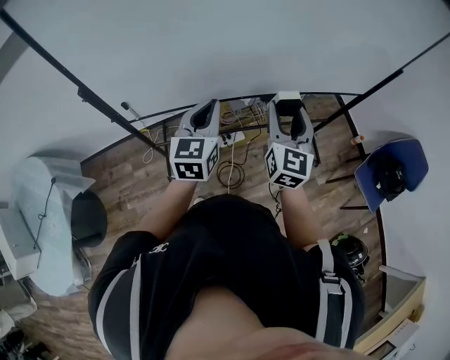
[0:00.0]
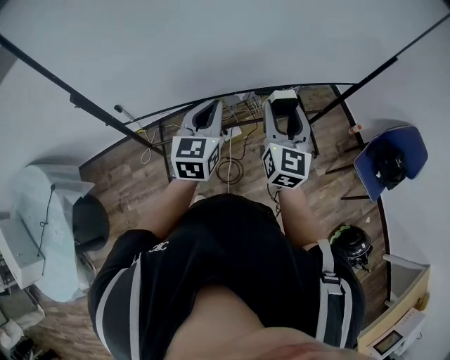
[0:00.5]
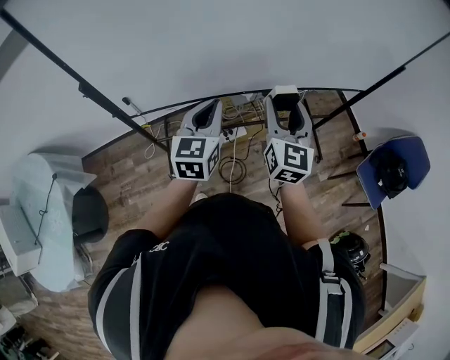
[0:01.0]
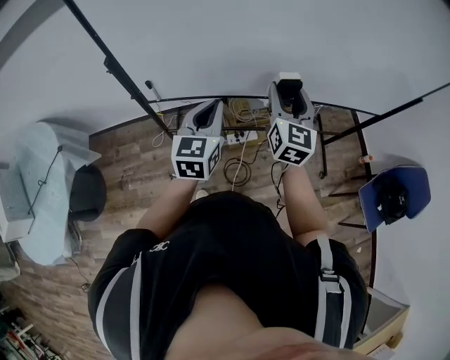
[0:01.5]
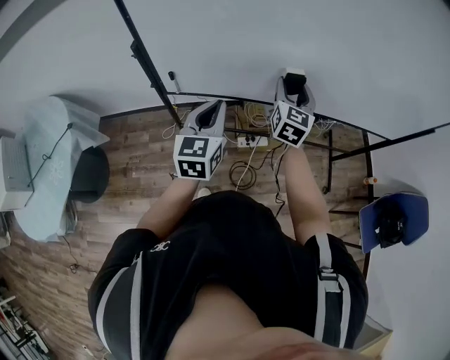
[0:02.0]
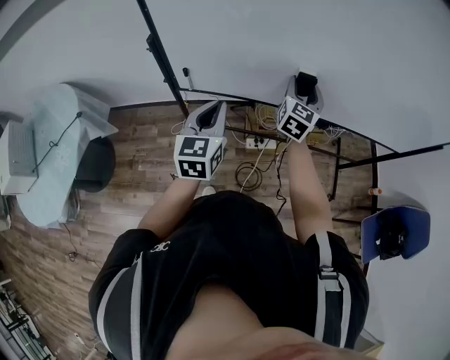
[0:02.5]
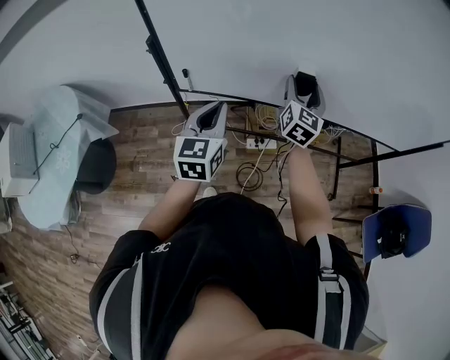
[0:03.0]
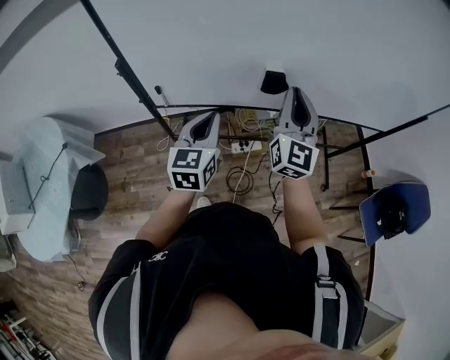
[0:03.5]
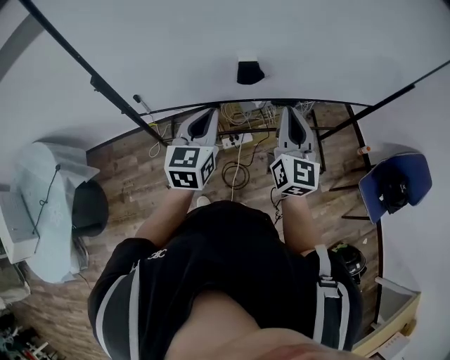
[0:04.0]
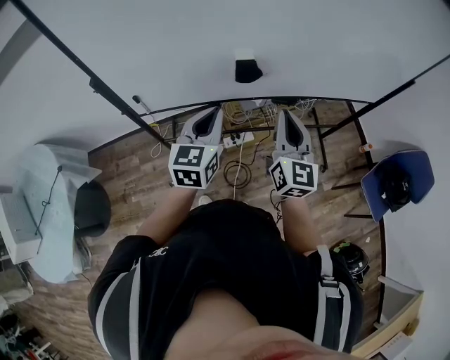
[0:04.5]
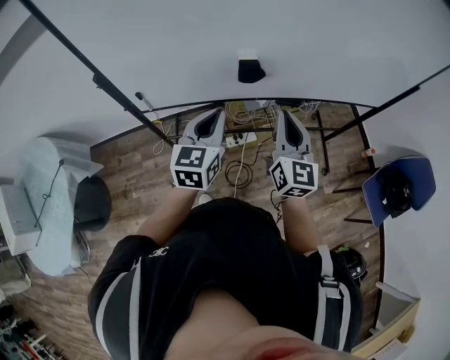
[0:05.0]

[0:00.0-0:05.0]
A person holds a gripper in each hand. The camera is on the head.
0:00.0 to 0:02.5: The left gripper goes some 15 cm to the left. Meanwhile the right gripper shifts roughly 20 cm forward and to the left.
0:02.5 to 0:05.0: The left gripper is displaced to the right by approximately 15 cm; the right gripper travels backward and to the right by about 20 cm, and closes its fingers.

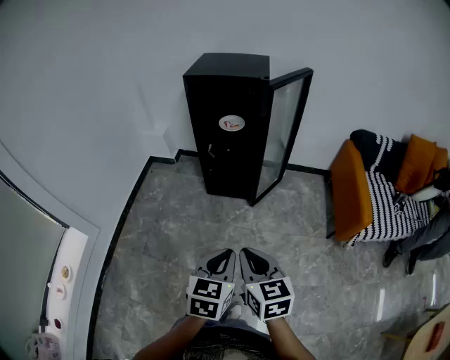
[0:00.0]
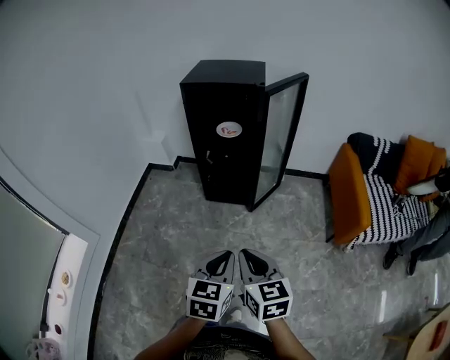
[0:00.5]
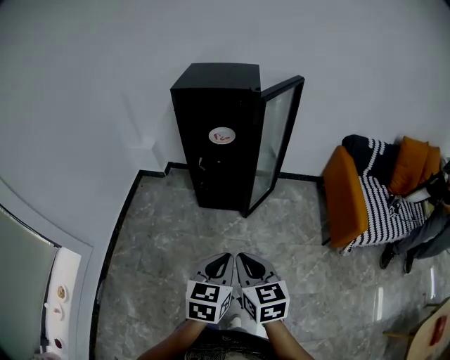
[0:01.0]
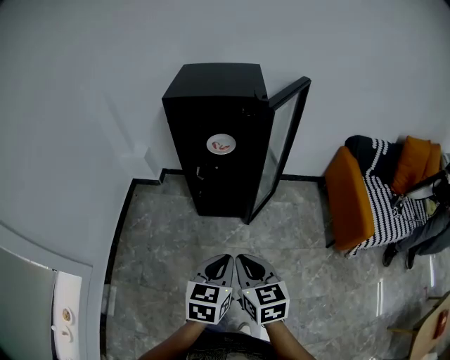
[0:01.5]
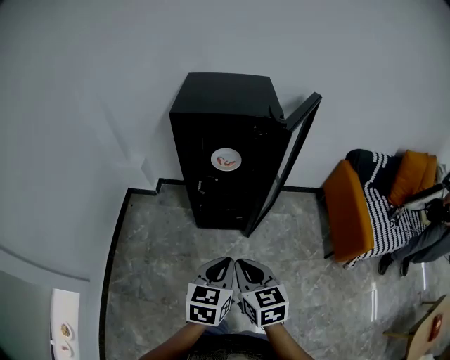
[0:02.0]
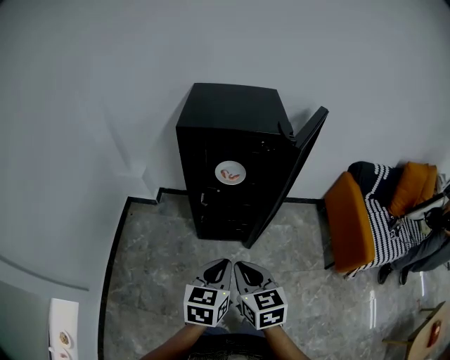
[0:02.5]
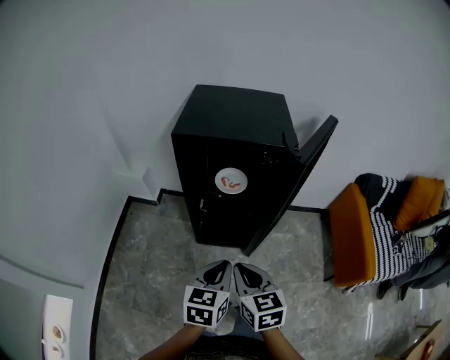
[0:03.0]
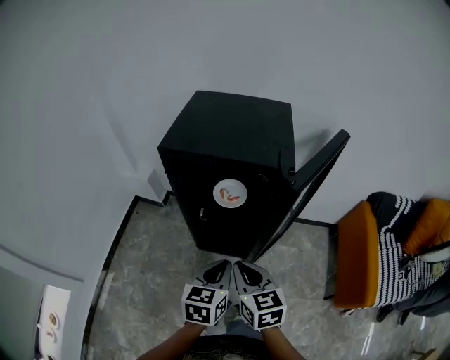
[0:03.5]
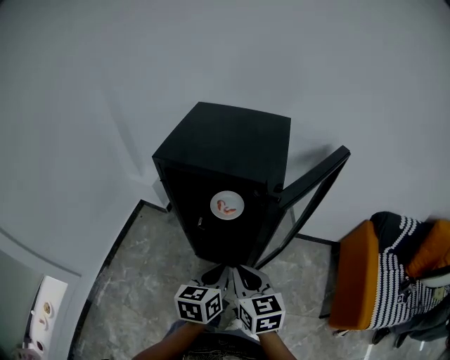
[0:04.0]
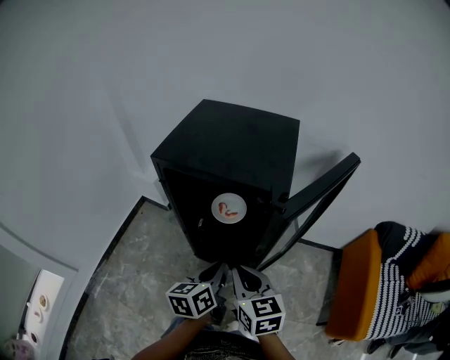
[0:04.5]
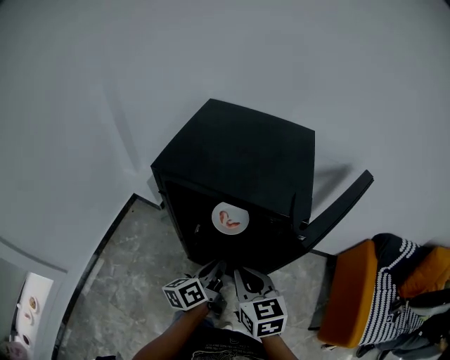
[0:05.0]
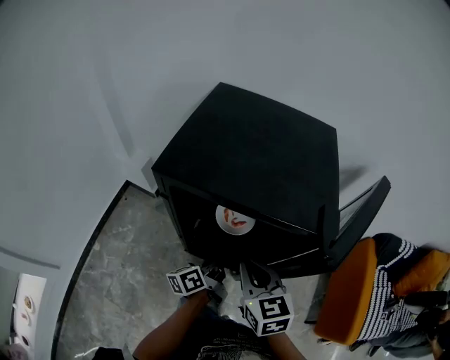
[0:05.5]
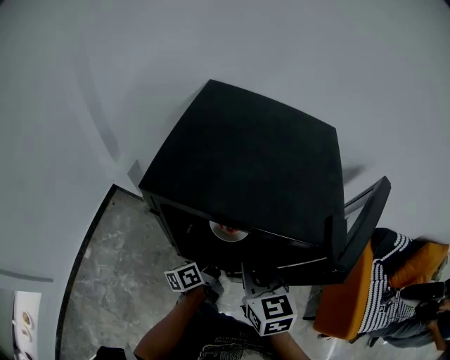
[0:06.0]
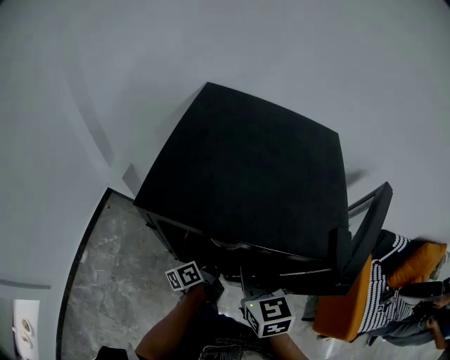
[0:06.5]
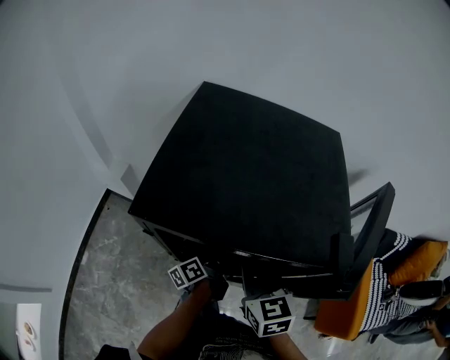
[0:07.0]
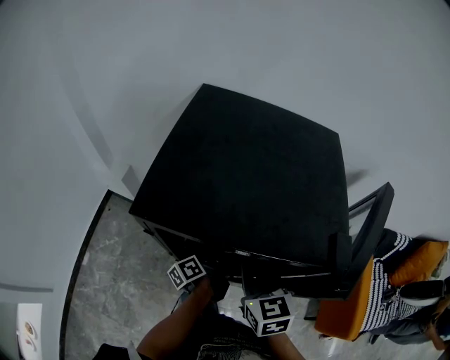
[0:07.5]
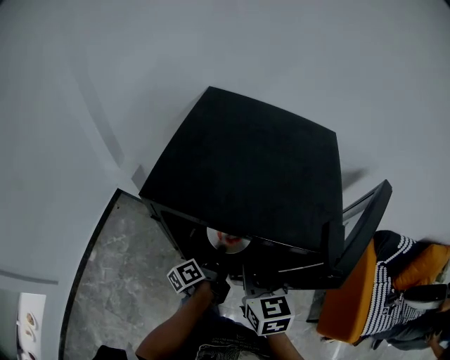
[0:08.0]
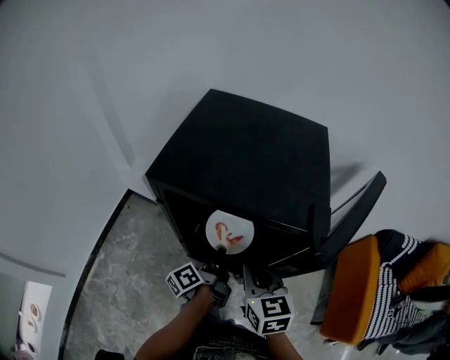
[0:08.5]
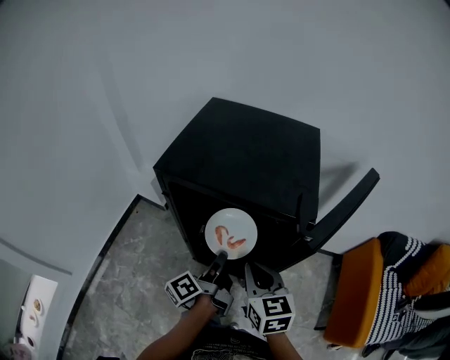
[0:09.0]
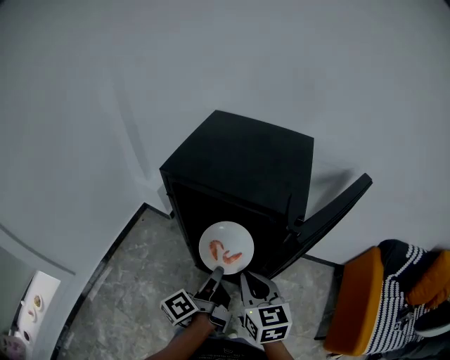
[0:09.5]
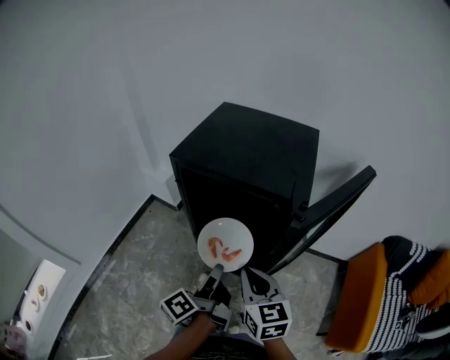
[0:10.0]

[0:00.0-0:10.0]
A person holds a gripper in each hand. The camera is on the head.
0:00.0 to 0:02.0: Both grippers move forward, about 25 cm.
0:02.0 to 0:04.0: Both grippers travel together forward and to the right, about 25 cm. The left gripper rotates roughly 20 degrees.
0:04.0 to 0:06.0: The right gripper moves forward, approximately 20 cm. The left gripper moves forward and downward, approximately 30 cm, and rotates around the line of its fingers by roughly 40 degrees, counterclockwise from behind.
0:06.0 to 0:08.0: The left gripper opens, then closes again.
0:08.0 to 0:10.0: The right gripper shifts some 15 cm backward; the left gripper shifts roughly 30 cm backward and upward, and rotates roughly 20 degrees.

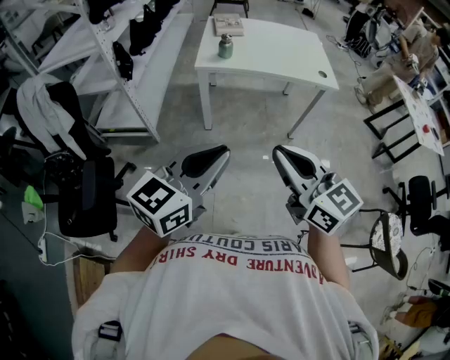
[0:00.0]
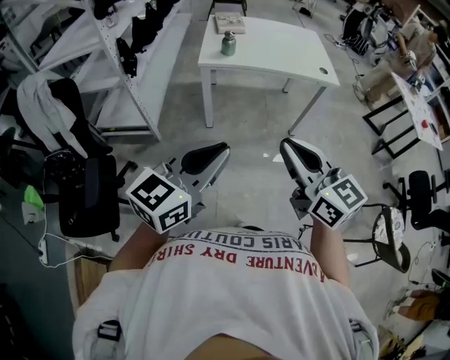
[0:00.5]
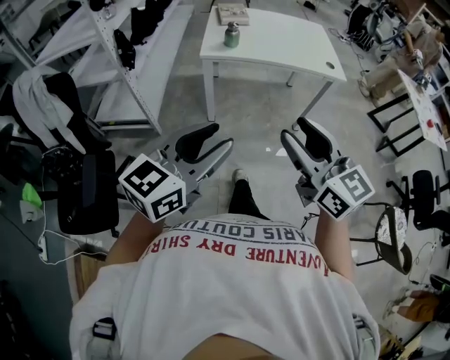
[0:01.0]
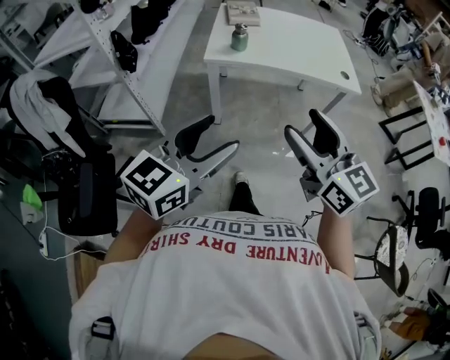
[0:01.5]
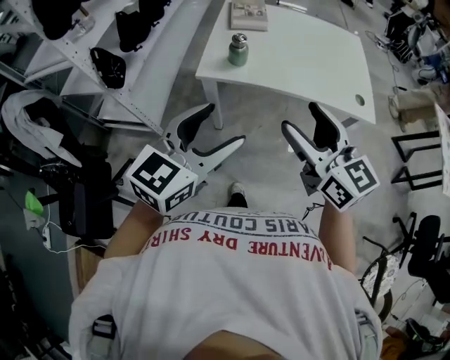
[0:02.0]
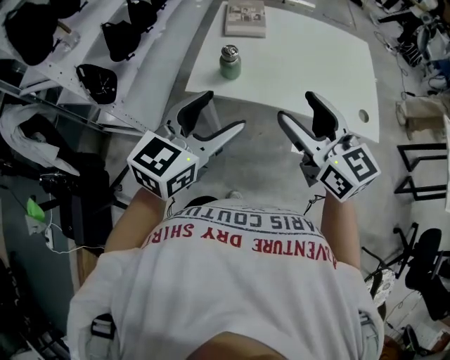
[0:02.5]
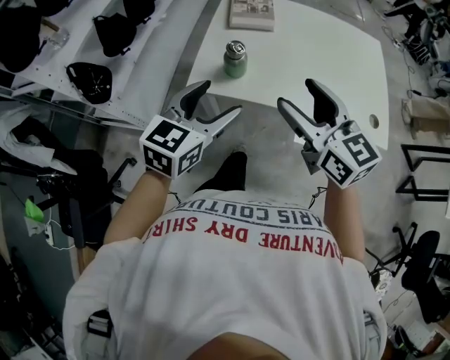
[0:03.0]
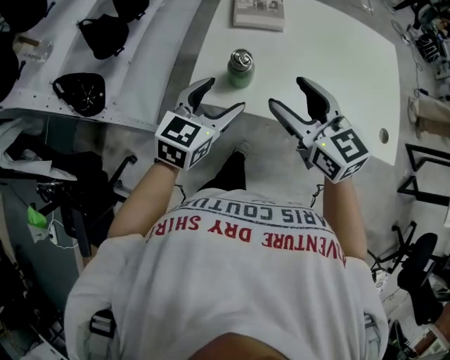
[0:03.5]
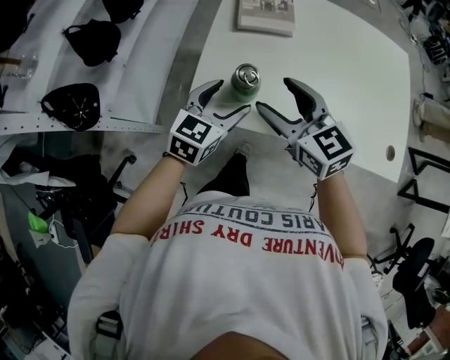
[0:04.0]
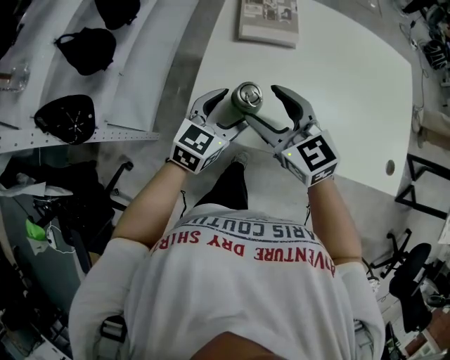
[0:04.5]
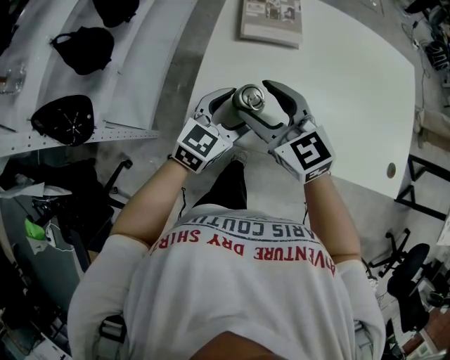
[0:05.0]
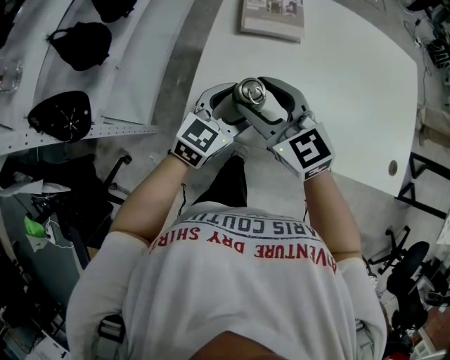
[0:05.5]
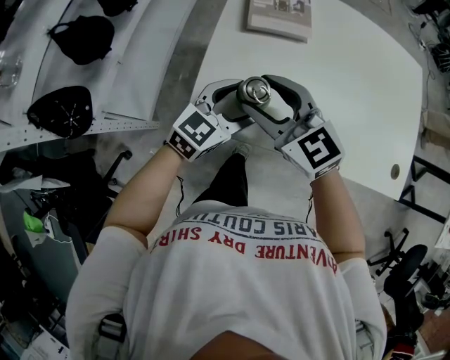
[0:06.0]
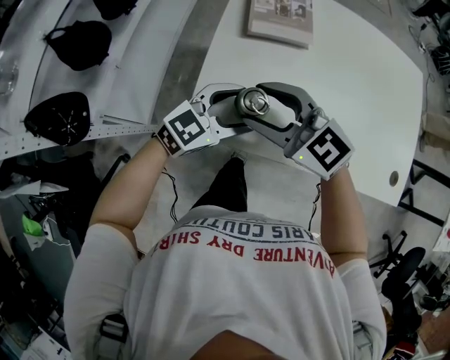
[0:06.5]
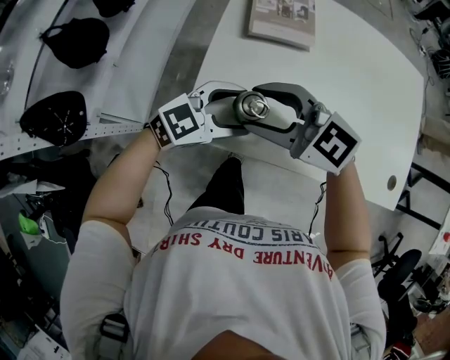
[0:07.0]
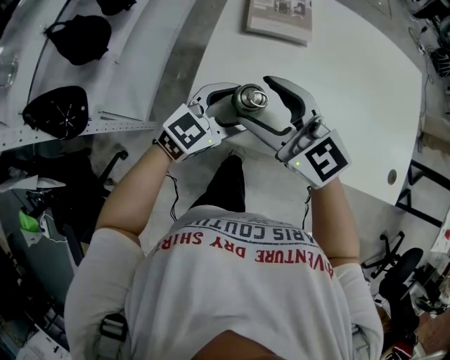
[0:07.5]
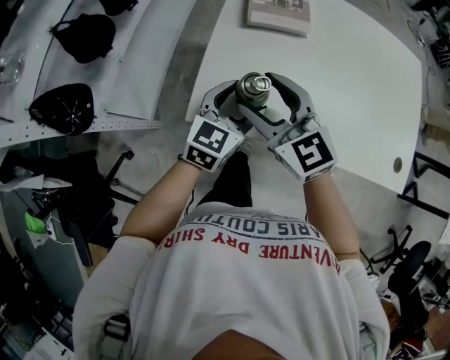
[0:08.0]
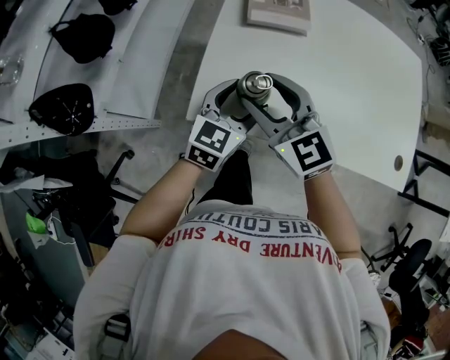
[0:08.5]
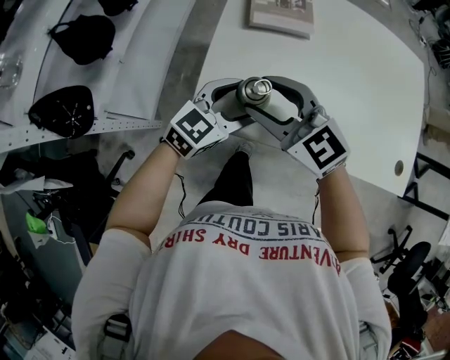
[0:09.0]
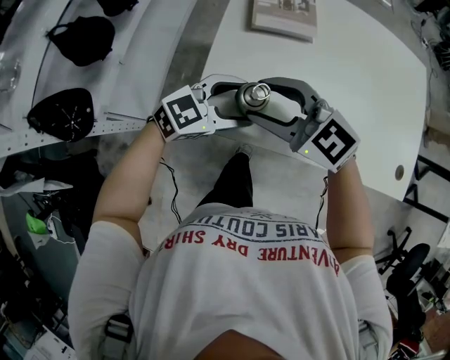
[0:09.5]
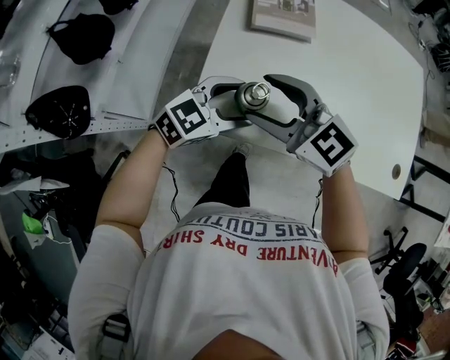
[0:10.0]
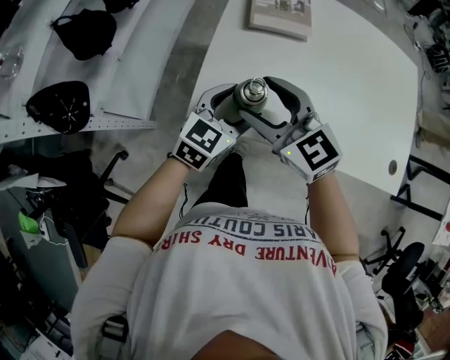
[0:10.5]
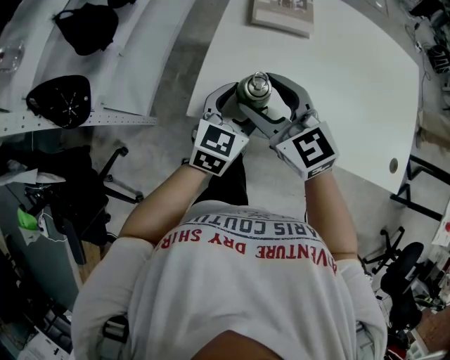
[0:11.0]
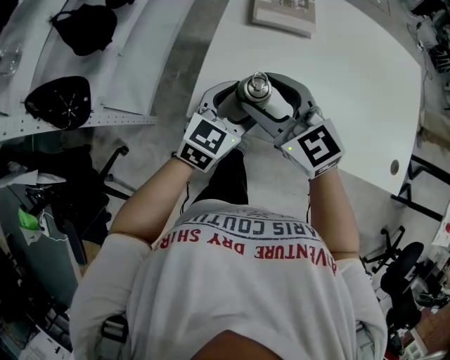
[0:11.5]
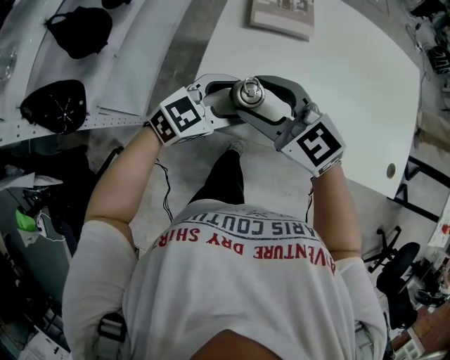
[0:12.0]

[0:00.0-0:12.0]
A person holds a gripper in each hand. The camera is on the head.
0:00.0 to 0:02.0: The grippers both shift forward by about 30 cm. The left gripper opens up; the right gripper opens up.
0:02.0 to 0:04.0: Both grippers move forward and downward, roughly 35 cm.
0:04.0 to 0:06.0: The right gripper travels to the left by approximately 5 cm.
0:08.0 to 0:10.0: The left gripper swivels about 30 degrees.
